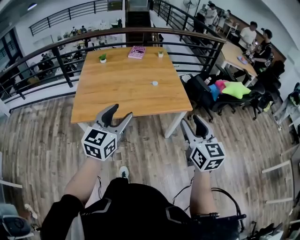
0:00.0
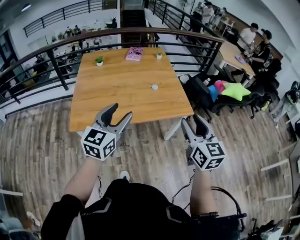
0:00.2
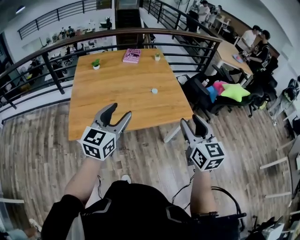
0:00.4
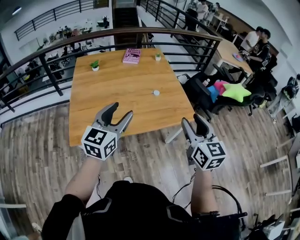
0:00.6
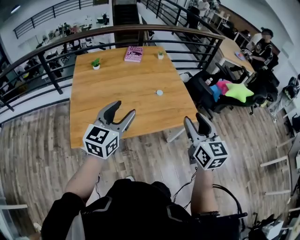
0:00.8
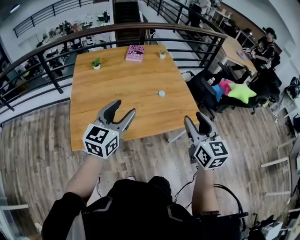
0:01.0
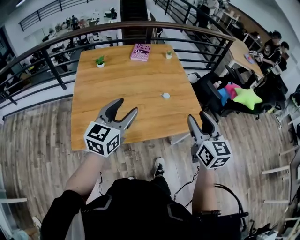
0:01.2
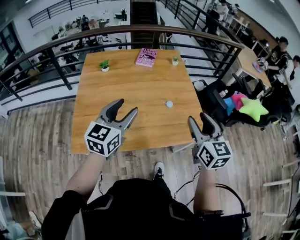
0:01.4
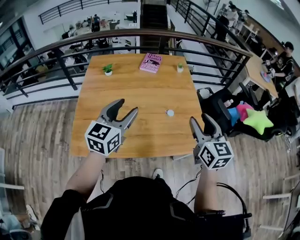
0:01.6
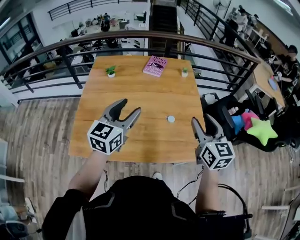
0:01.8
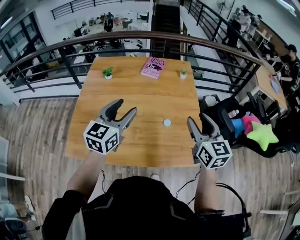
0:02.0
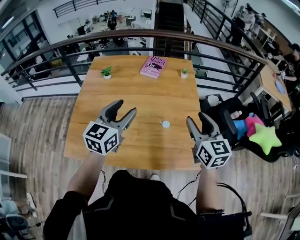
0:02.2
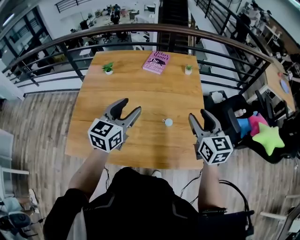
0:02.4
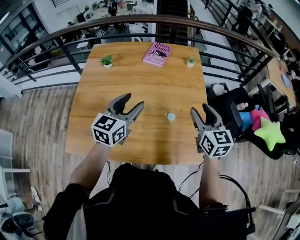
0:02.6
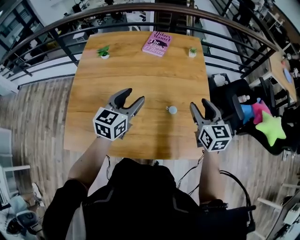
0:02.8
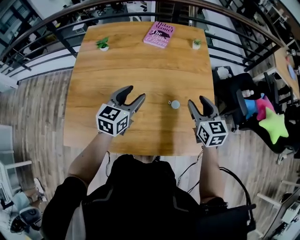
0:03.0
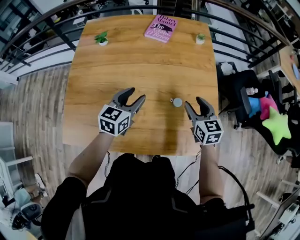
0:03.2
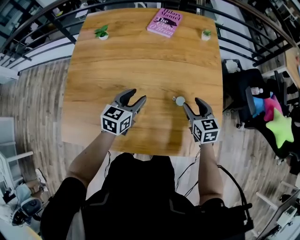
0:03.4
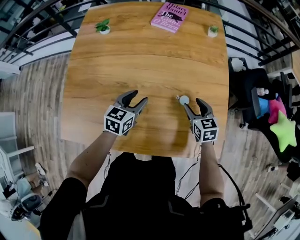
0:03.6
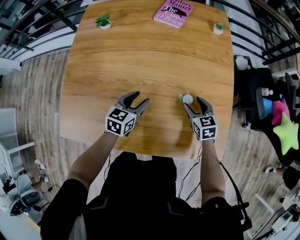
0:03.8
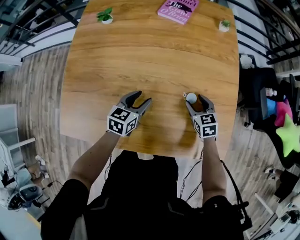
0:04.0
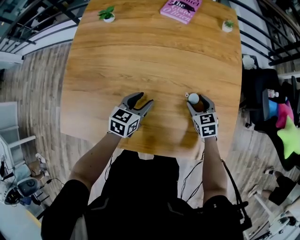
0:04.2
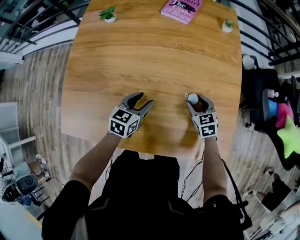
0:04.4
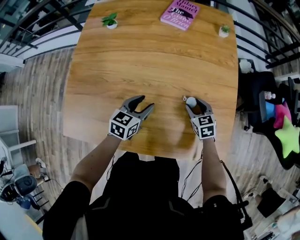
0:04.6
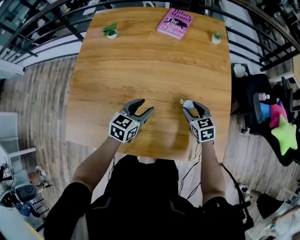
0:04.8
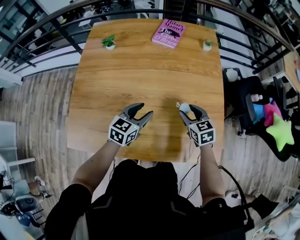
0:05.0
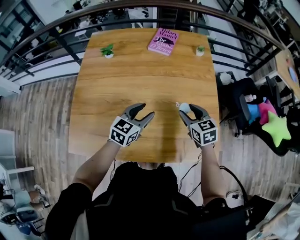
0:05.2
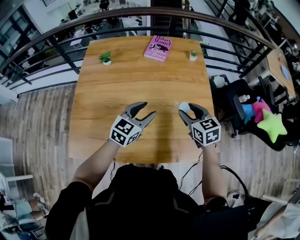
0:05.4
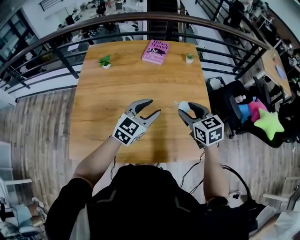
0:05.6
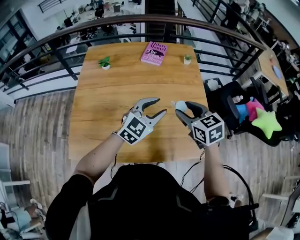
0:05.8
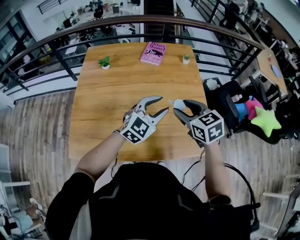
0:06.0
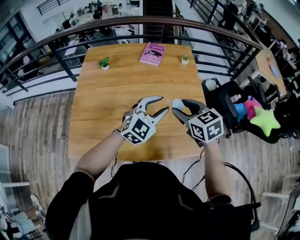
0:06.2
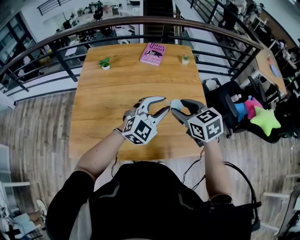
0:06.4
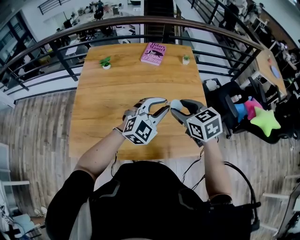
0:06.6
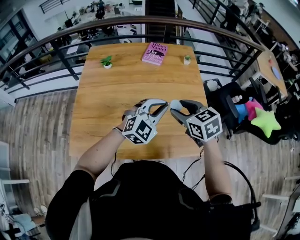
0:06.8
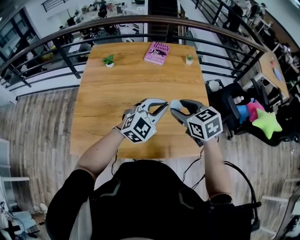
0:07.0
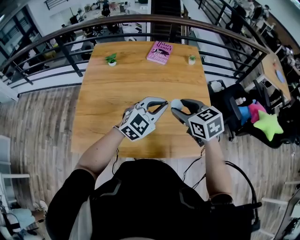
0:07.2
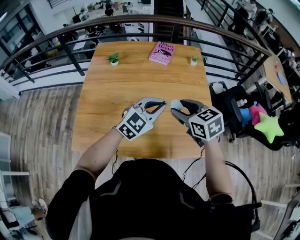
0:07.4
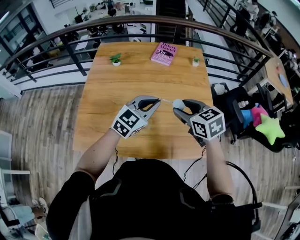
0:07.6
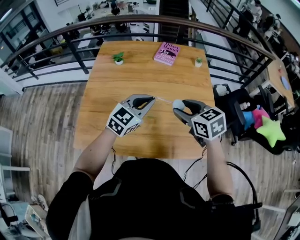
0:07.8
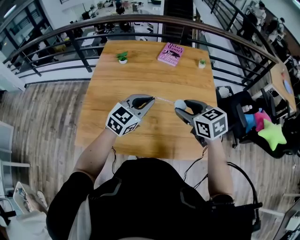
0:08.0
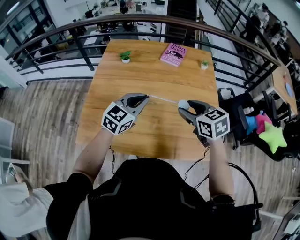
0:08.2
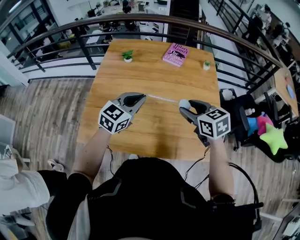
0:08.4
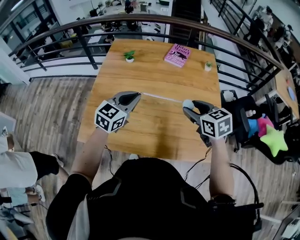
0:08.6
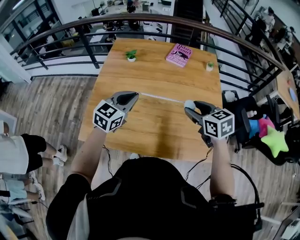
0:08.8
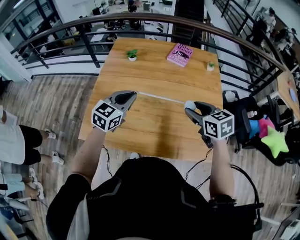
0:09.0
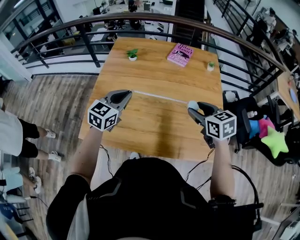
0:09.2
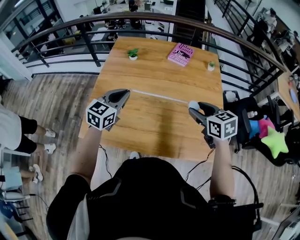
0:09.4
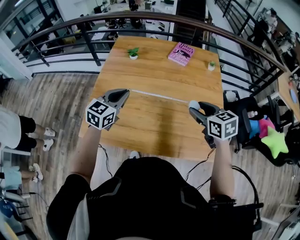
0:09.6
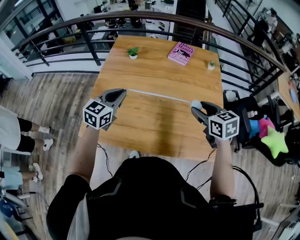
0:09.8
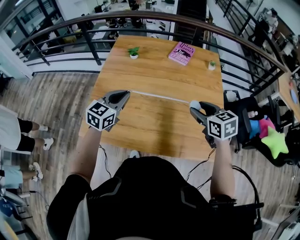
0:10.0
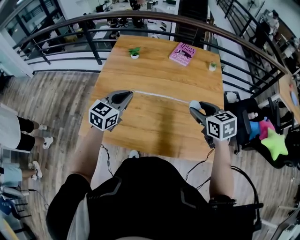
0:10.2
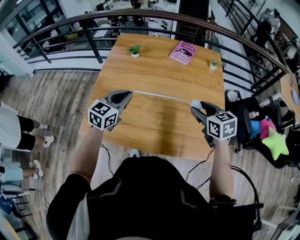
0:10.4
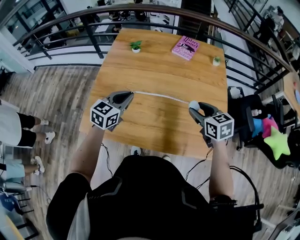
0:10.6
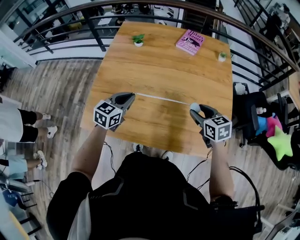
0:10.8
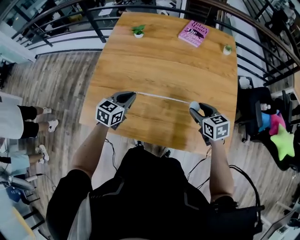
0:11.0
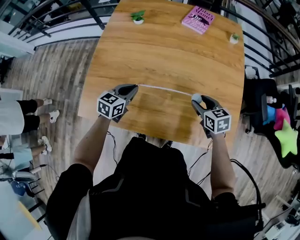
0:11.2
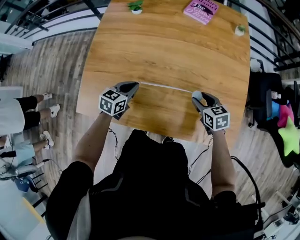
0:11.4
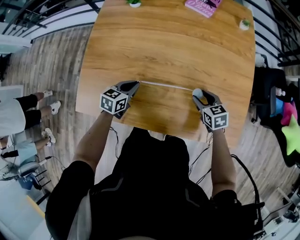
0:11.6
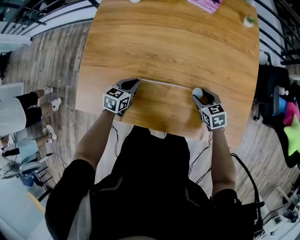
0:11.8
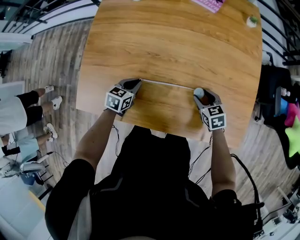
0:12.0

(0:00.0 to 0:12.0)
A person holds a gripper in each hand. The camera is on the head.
0:00.0 - 0:01.6: Both grippers travel together forward, about 35 cm.
0:01.6 - 0:03.0: Both grippers move forward and downward, approximately 25 cm.
0:03.0 - 0:04.4: The grippers both shift downward by roughly 20 cm. The right gripper changes its angle by approximately 30 degrees.
0:04.4 - 0:06.0: The right gripper is displaced upward by some 35 cm; the left gripper goes roughly 30 cm upward and to the right, and rotates around the line of its fingers by some 40 degrees, clockwise from behind.
0:06.0 - 0:07.6: The left gripper moves to the left, roughly 5 cm, and closes.
0:07.6 - 0:09.0: The left gripper travels to the left by about 15 cm.
0:09.0 - 0:10.4: The grippers move only a little.
0:10.4 - 0:12.0: The two grippers go about 30 cm downward. The left gripper turns by approximately 30 degrees.

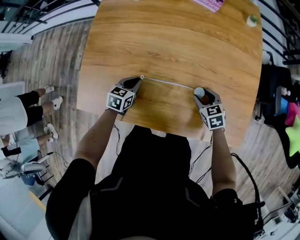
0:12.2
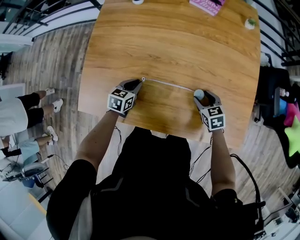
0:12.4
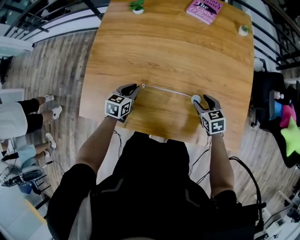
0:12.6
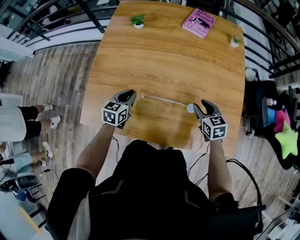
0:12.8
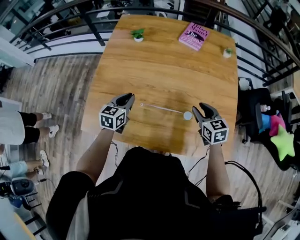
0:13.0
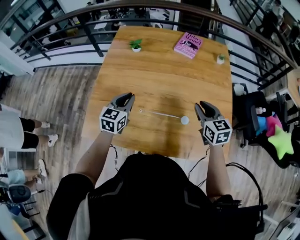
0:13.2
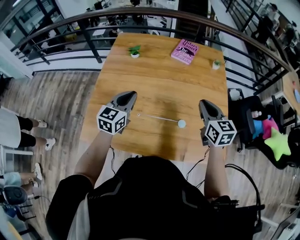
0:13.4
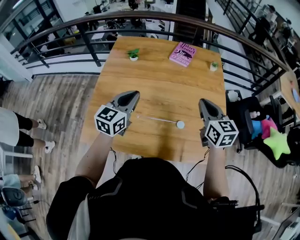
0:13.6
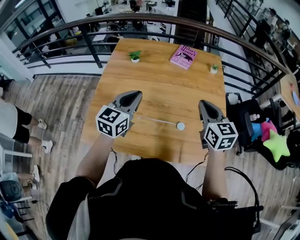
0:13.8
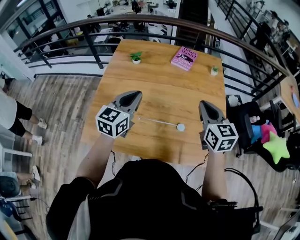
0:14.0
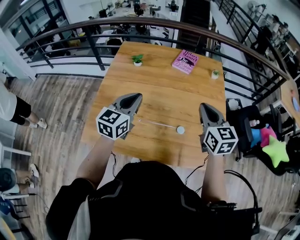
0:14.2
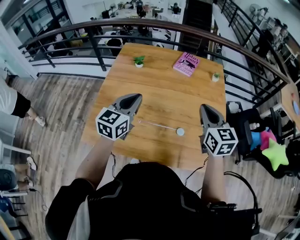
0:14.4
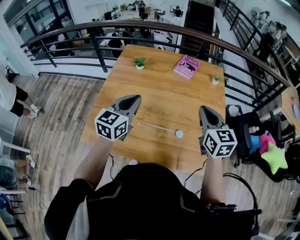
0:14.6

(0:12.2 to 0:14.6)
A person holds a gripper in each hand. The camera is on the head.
0:12.2 - 0:13.4: Both grippers travel together upward, about 30 cm. The right gripper points its fingers about 30 degrees further upward, and closes; the left gripper angles its fingers upward, by approximately 30 degrees.
0:13.4 - 0:14.6: Both grippers travel together upward, approximately 10 cm.

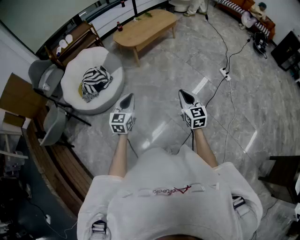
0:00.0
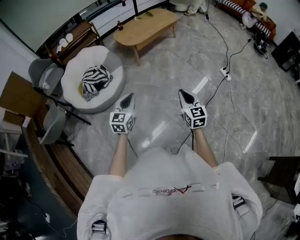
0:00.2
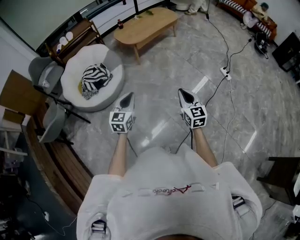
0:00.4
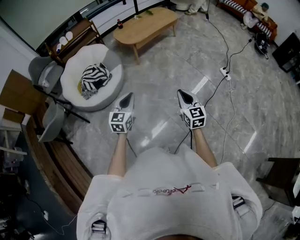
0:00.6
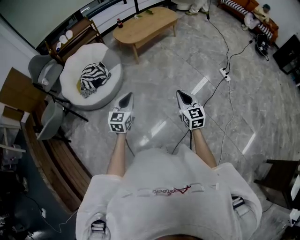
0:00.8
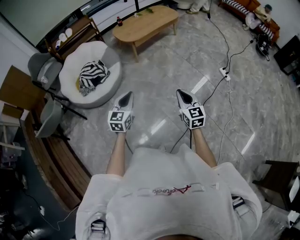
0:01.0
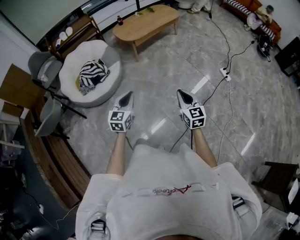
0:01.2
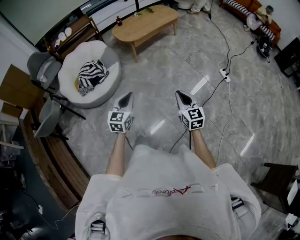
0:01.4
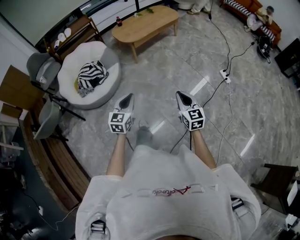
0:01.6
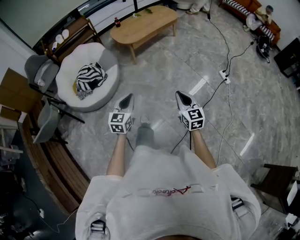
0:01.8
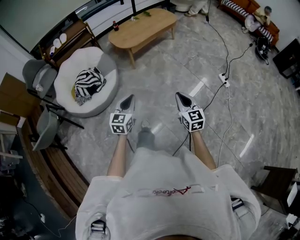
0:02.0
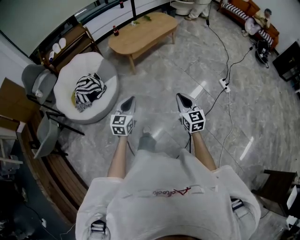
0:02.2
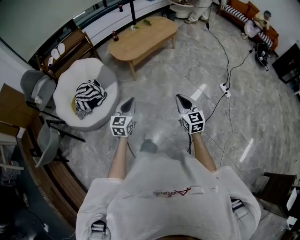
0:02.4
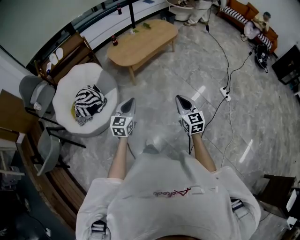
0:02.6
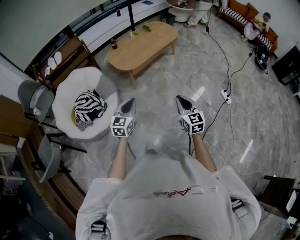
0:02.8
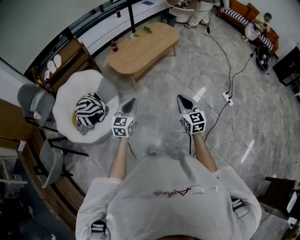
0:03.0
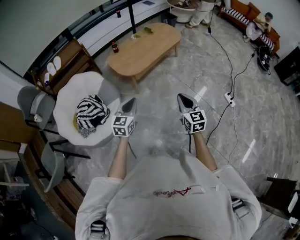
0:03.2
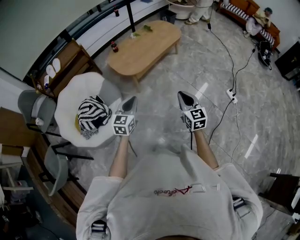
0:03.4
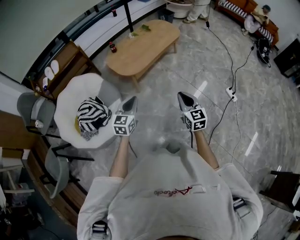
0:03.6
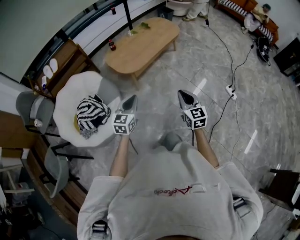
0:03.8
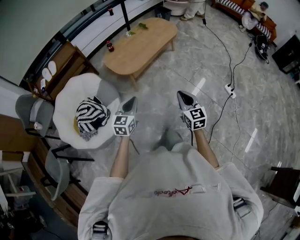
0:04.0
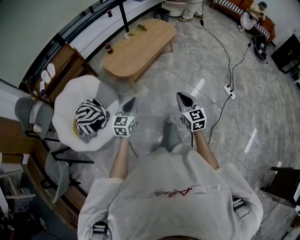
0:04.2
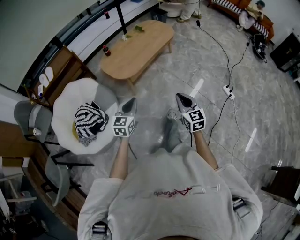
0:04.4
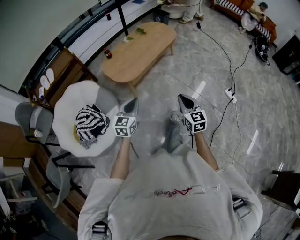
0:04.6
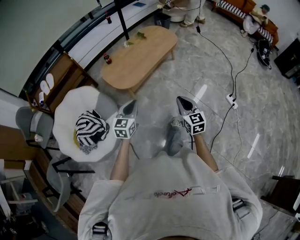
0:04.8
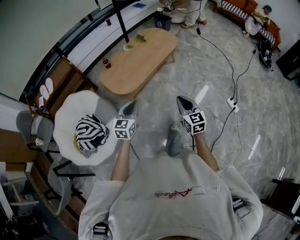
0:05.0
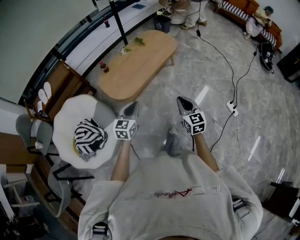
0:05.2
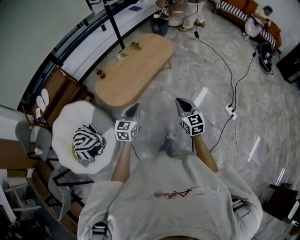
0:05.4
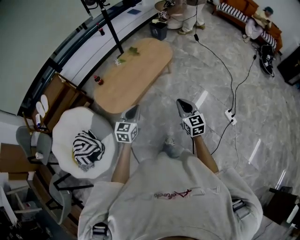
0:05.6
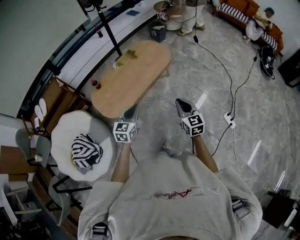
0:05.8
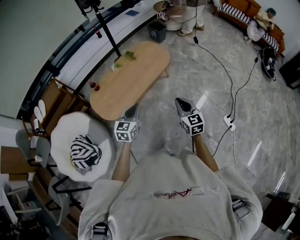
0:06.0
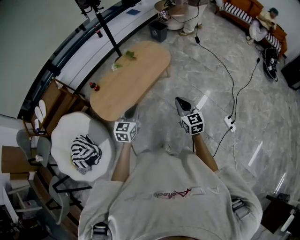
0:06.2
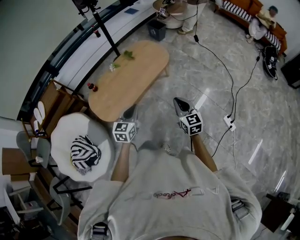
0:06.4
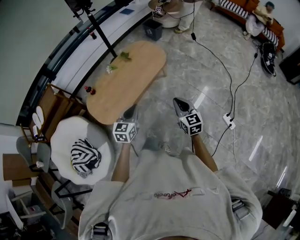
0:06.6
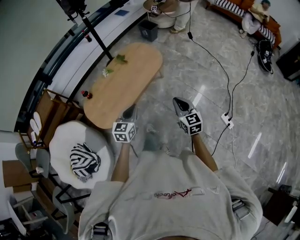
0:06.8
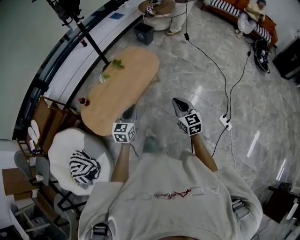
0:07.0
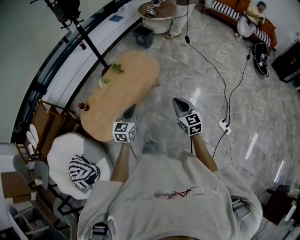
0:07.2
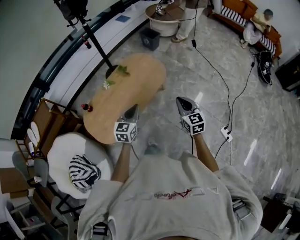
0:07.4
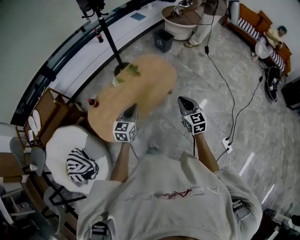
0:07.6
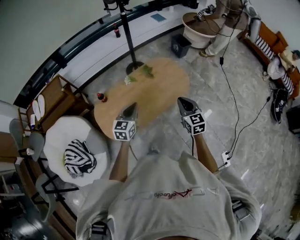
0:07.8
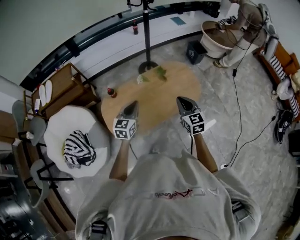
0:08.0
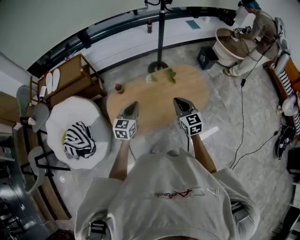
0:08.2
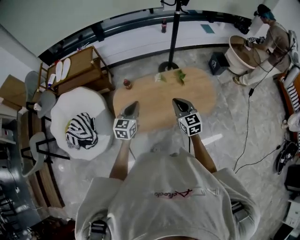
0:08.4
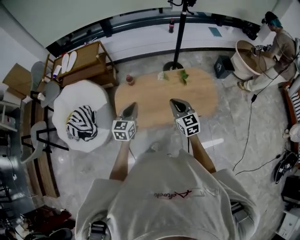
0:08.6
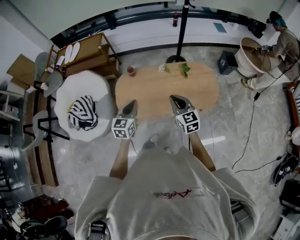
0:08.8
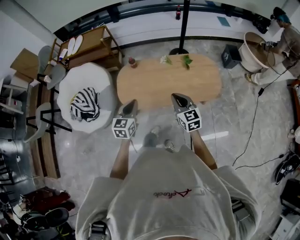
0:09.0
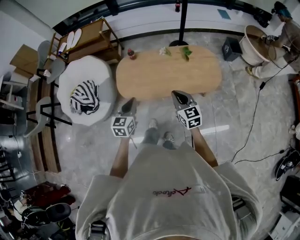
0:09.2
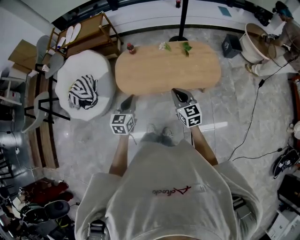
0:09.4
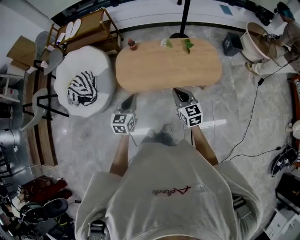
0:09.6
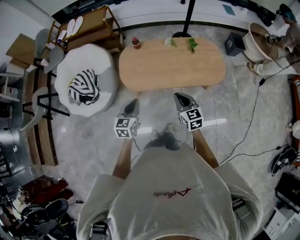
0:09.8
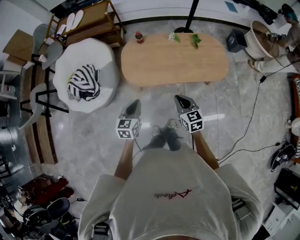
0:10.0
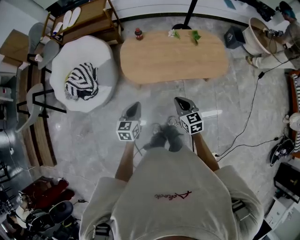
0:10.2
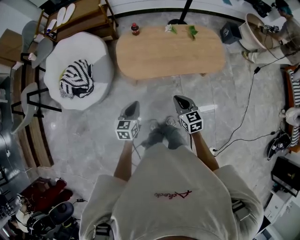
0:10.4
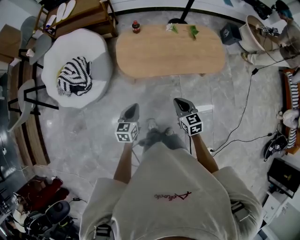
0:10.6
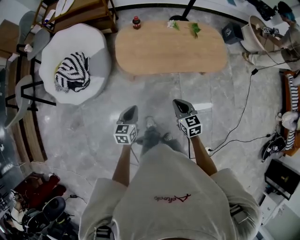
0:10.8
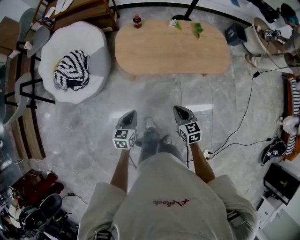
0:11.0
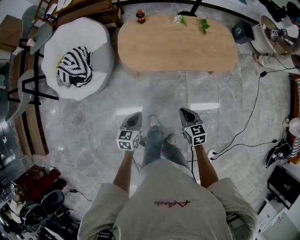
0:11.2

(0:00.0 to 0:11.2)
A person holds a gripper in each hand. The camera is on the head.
0:00.0 - 0:01.6: Both grippers move to the right, about 5 cm.
0:01.6 - 0:03.2: Both grippers are carried forward, some 50 cm.
0:03.2 - 0:04.8: The two grippers go roughly 15 cm forward.
0:04.8 - 0:06.4: The two grippers travel together, forward and to the right, approximately 40 cm.
0:06.4 - 0:08.0: The grippers both shift forward and to the left by some 35 cm. The right gripper changes its angle by approximately 20 degrees. Meanwhile the left gripper changes its angle by approximately 20 degrees.
0:08.0 - 0:09.6: The left gripper ends up roughly 25 cm from where it was, and swivels about 30 degrees; the right gripper ends up about 15 cm from where it was, and changes its angle by approximately 30 degrees.
0:09.6 - 0:11.2: The left gripper is displaced downward, to the left and backward by some 25 cm. Meanwhile the right gripper heads downward, backward and to the left, covering about 25 cm, and changes its angle by about 20 degrees.
